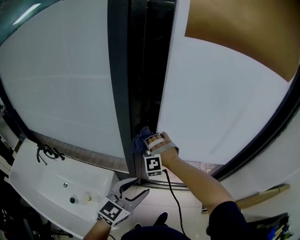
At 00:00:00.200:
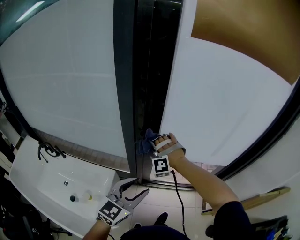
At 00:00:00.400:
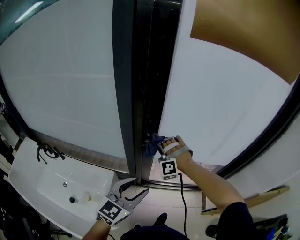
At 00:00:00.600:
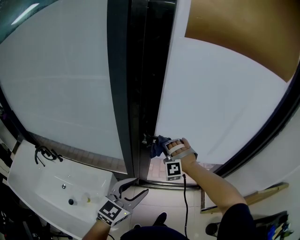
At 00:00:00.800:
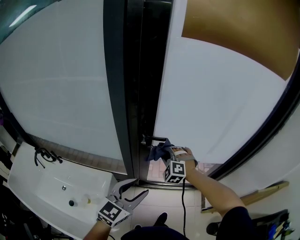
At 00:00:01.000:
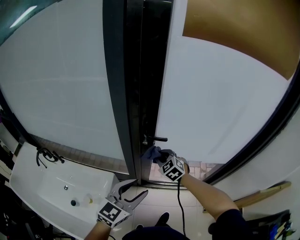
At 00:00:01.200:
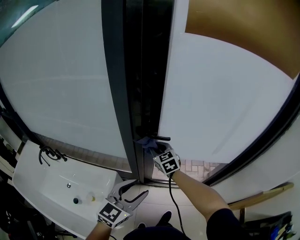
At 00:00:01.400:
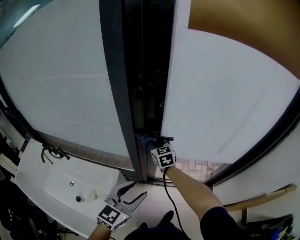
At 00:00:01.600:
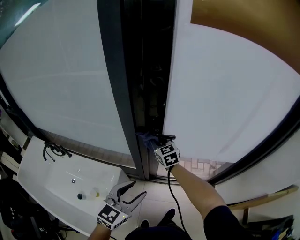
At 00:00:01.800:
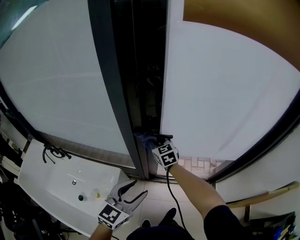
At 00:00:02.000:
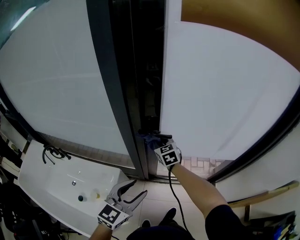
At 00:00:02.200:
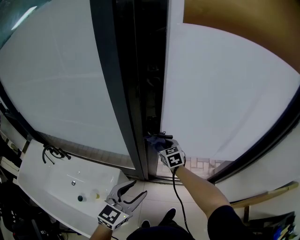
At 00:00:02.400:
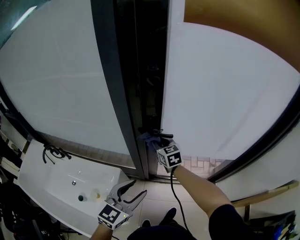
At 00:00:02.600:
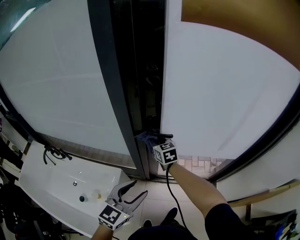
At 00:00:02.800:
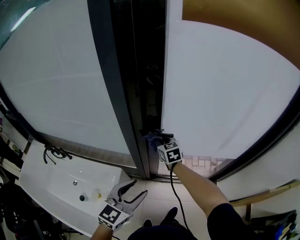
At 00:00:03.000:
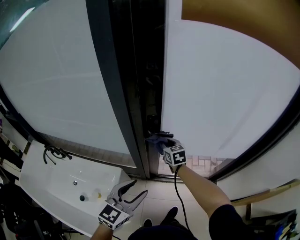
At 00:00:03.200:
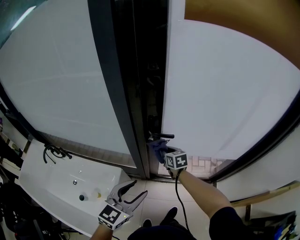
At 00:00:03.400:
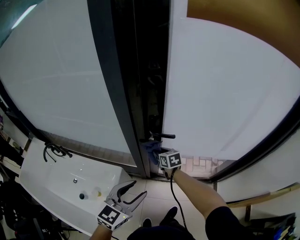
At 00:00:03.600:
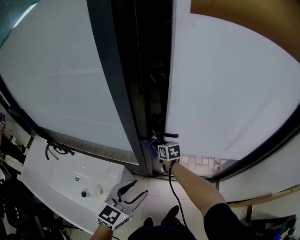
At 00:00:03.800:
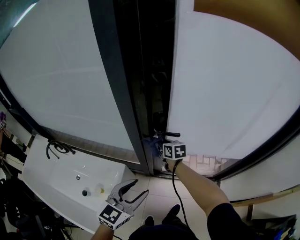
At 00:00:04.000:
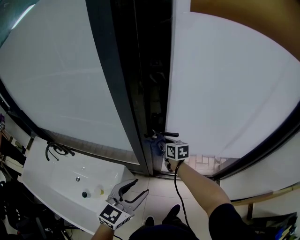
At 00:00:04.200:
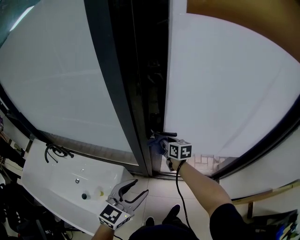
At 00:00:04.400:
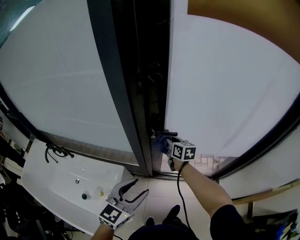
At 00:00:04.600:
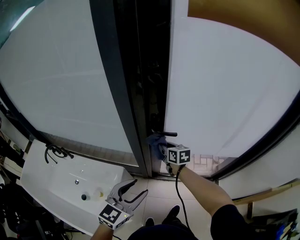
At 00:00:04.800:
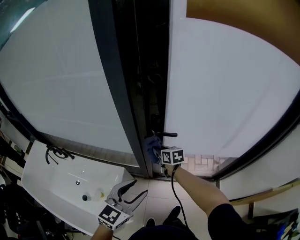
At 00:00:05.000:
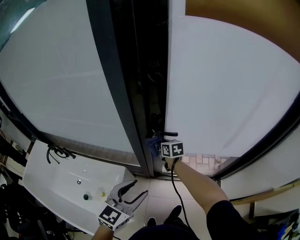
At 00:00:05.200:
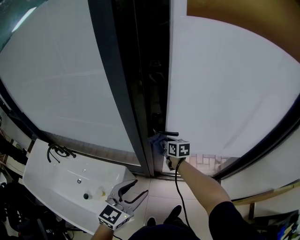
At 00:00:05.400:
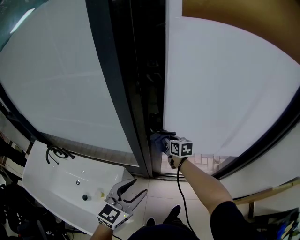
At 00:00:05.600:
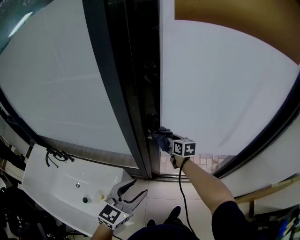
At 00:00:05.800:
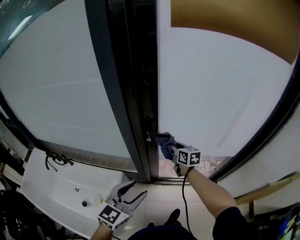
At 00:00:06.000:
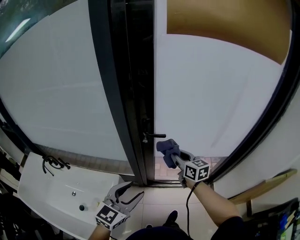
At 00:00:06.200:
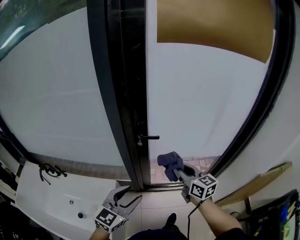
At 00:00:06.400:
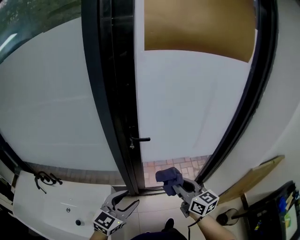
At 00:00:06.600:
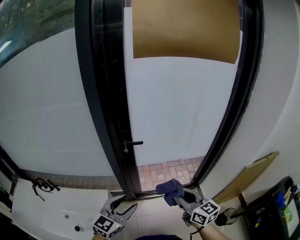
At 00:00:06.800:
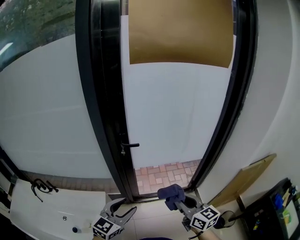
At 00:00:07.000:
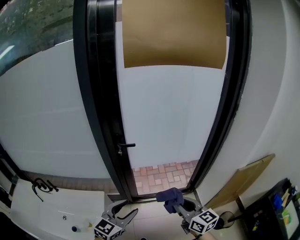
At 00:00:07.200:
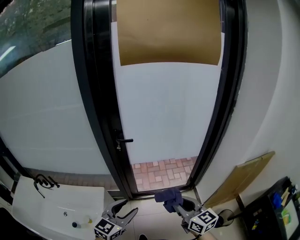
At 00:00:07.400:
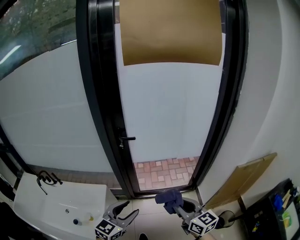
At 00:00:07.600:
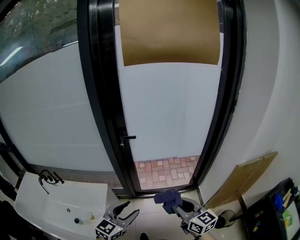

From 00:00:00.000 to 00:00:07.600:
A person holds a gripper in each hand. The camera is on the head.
From 00:00:00.000 to 00:00:01.600: The right gripper heads forward, covering about 5 cm, goes to the right and returns, about 10 cm each way, and twists about 90 degrees clockwise, seen from behind.
From 00:00:01.600 to 00:00:03.000: The right gripper moves left and right over some 5 cm, changing direction 2 times.
From 00:00:03.000 to 00:00:04.600: The right gripper reaches some 5 cm downward, then returns.
From 00:00:04.600 to 00:00:06.000: The right gripper is displaced upward, backward and to the right by roughly 15 cm.
From 00:00:06.000 to 00:00:07.600: The right gripper goes some 40 cm backward and to the right, while the left gripper travels backward and to the right by some 25 cm.

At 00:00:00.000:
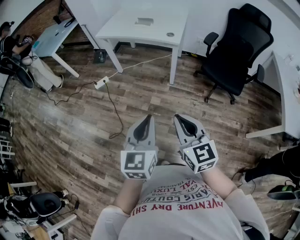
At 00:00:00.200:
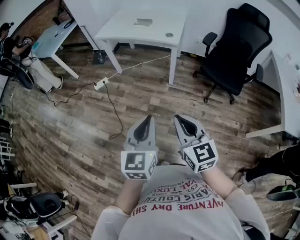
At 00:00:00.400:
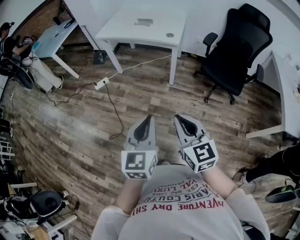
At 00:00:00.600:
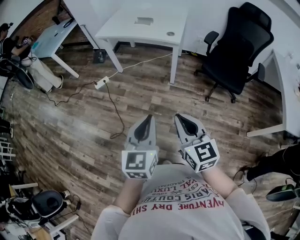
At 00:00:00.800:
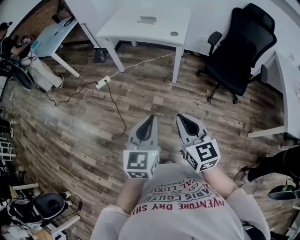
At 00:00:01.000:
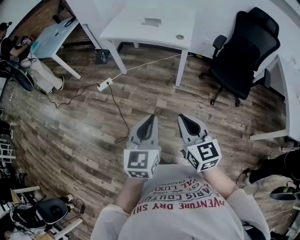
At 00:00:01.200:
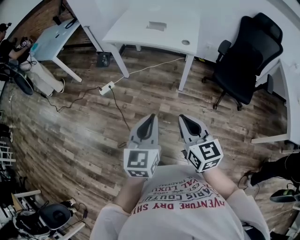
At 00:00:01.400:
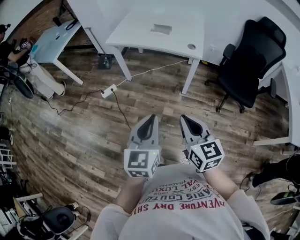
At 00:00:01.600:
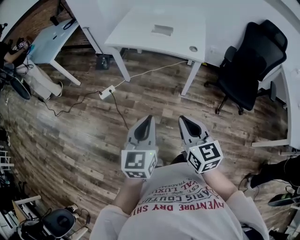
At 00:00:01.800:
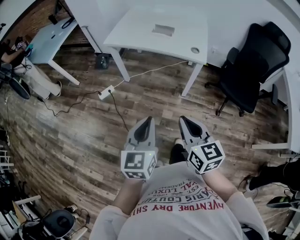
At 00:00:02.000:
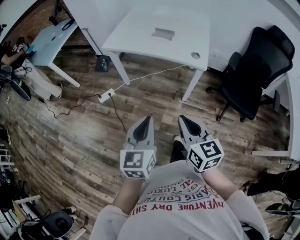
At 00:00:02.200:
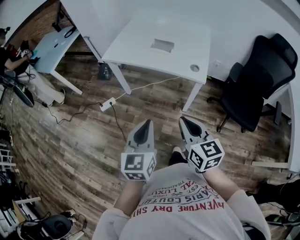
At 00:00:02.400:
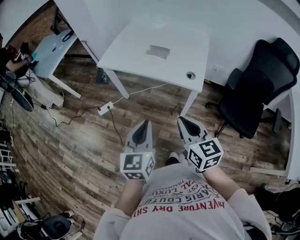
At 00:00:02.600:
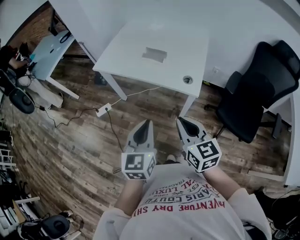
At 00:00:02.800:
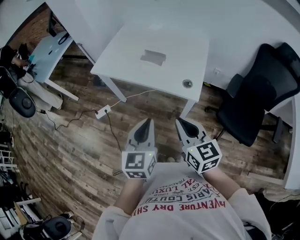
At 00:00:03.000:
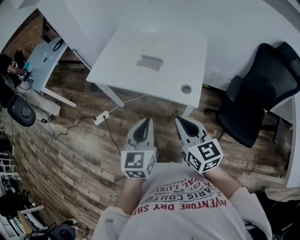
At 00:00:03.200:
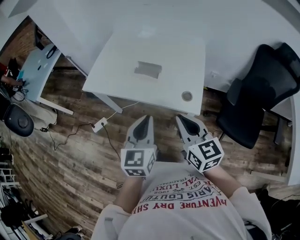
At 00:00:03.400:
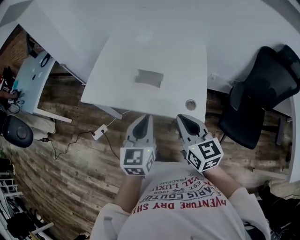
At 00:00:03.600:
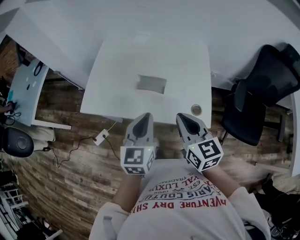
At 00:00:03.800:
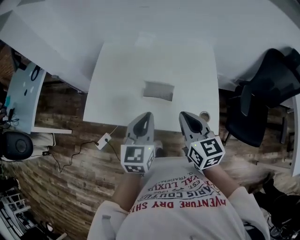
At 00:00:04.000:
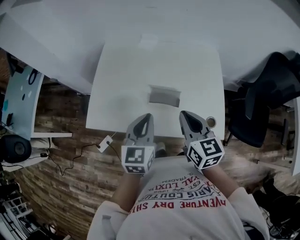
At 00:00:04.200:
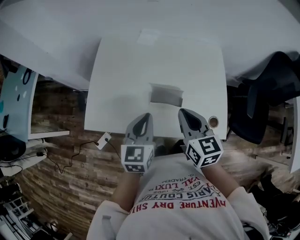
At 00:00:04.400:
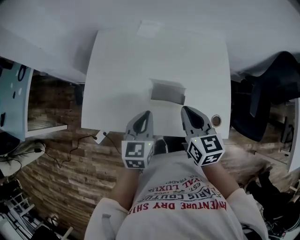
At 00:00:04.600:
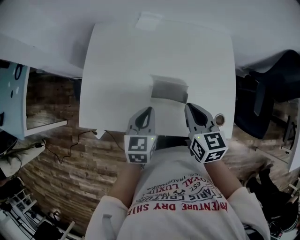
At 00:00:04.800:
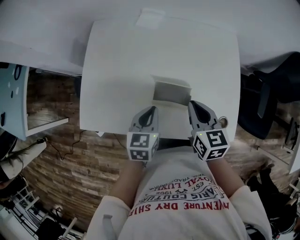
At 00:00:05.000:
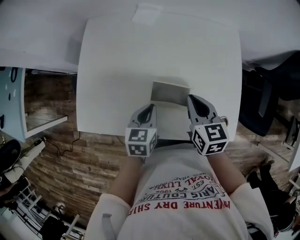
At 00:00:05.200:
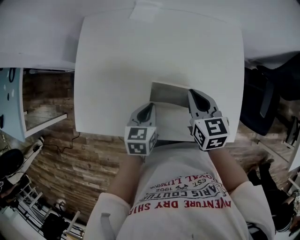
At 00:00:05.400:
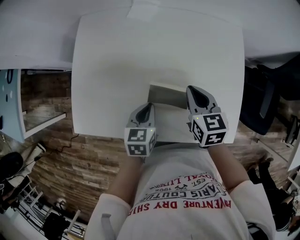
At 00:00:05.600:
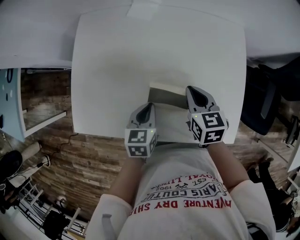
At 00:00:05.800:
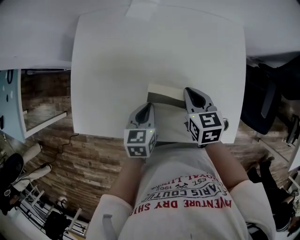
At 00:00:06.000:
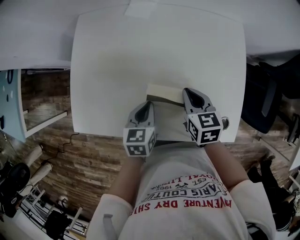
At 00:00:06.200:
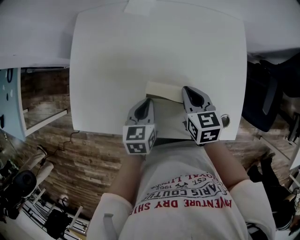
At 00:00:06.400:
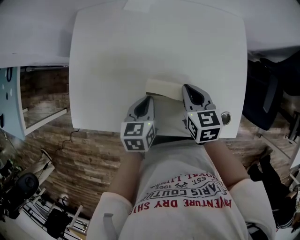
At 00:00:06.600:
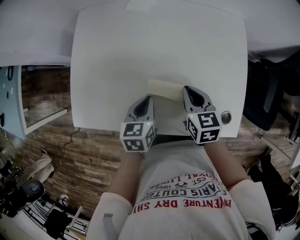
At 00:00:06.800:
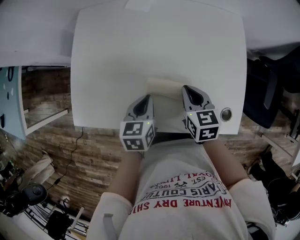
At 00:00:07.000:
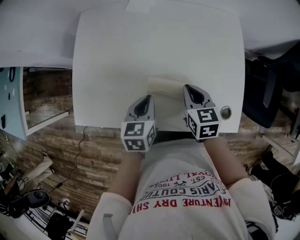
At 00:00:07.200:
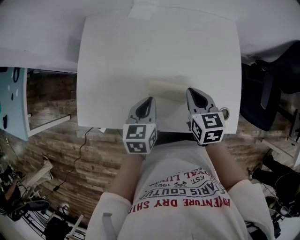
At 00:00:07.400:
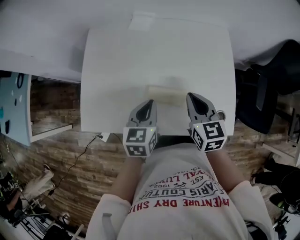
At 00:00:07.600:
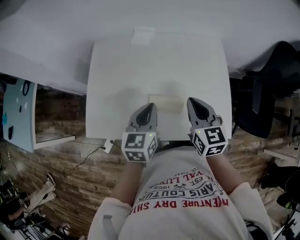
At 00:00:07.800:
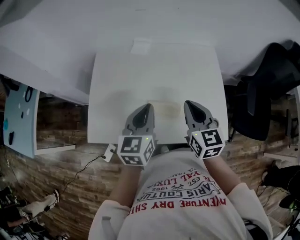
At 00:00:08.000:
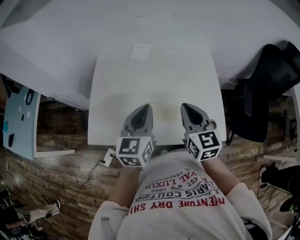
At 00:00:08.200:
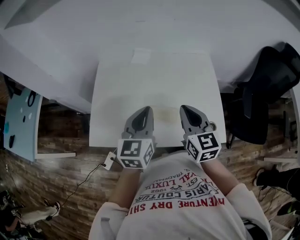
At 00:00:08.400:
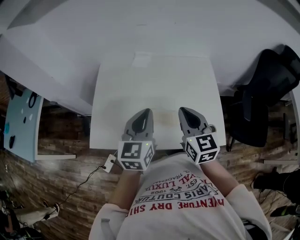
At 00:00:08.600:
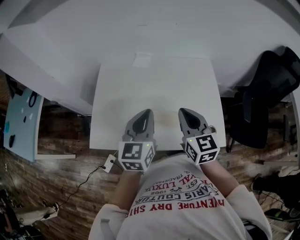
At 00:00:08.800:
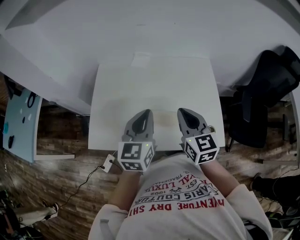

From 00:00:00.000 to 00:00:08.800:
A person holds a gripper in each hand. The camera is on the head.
From 00:00:00.000 to 00:00:01.400: Both grippers move forward and to the left, some 15 cm.
From 00:00:01.400 to 00:00:03.000: Both grippers move forward, roughly 30 cm.
From 00:00:03.000 to 00:00:04.400: The two grippers go some 25 cm forward. The left gripper changes its angle by roughly 20 degrees; the right gripper changes its angle by roughly 20 degrees.
From 00:00:04.400 to 00:00:05.800: The right gripper heads downward and forward, covering approximately 15 cm, while the left gripper moves downward, some 10 cm.
From 00:00:05.800 to 00:00:07.400: The two grippers go roughly 5 cm upward.
From 00:00:07.400 to 00:00:08.800: Both grippers move upward, about 10 cm. The left gripper rotates some 20 degrees.

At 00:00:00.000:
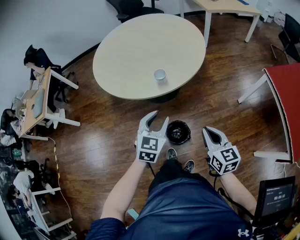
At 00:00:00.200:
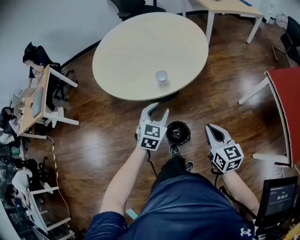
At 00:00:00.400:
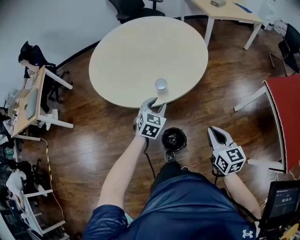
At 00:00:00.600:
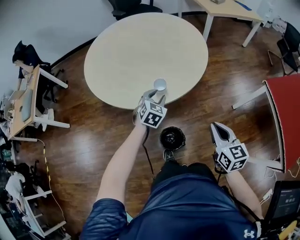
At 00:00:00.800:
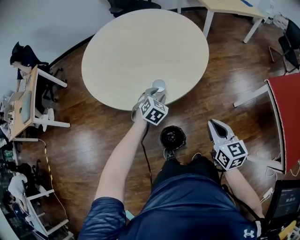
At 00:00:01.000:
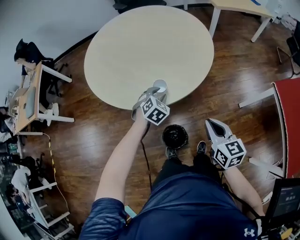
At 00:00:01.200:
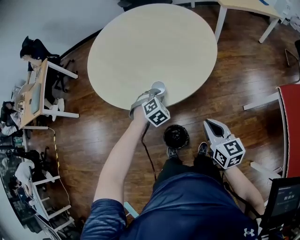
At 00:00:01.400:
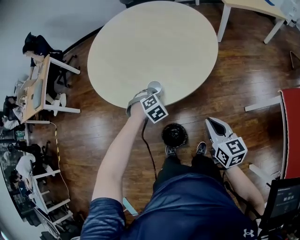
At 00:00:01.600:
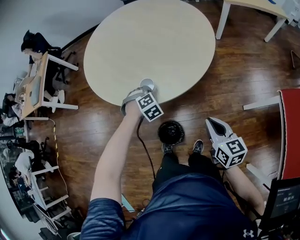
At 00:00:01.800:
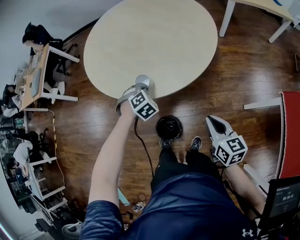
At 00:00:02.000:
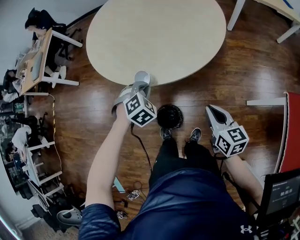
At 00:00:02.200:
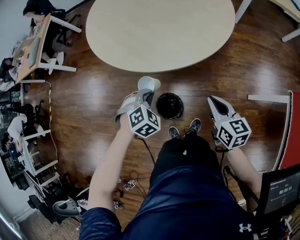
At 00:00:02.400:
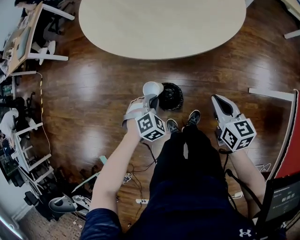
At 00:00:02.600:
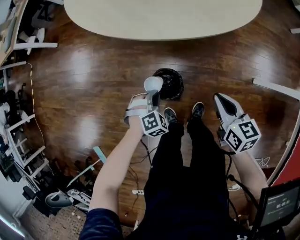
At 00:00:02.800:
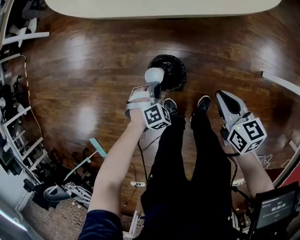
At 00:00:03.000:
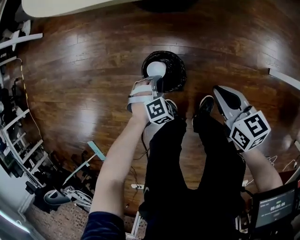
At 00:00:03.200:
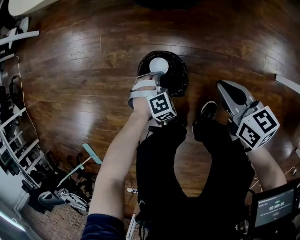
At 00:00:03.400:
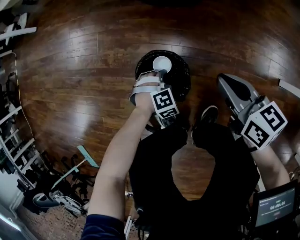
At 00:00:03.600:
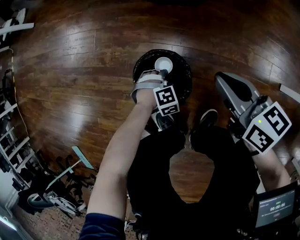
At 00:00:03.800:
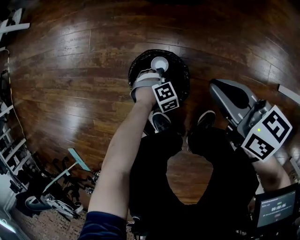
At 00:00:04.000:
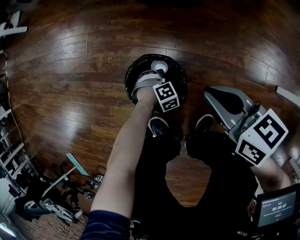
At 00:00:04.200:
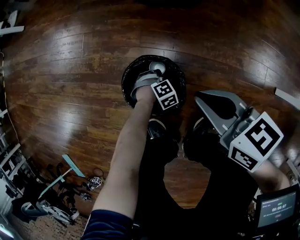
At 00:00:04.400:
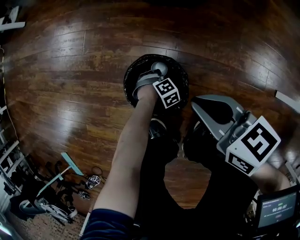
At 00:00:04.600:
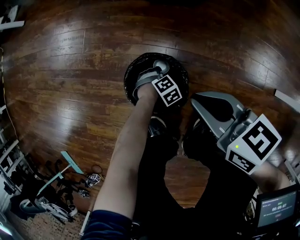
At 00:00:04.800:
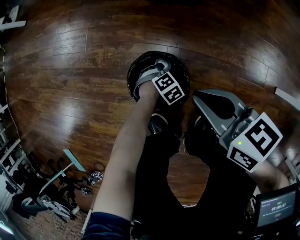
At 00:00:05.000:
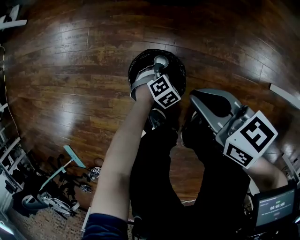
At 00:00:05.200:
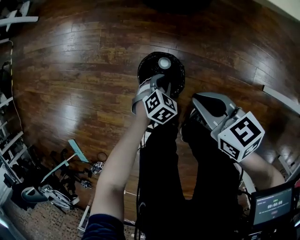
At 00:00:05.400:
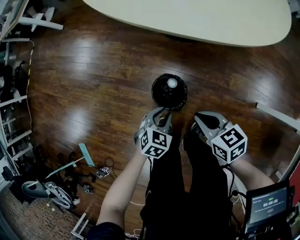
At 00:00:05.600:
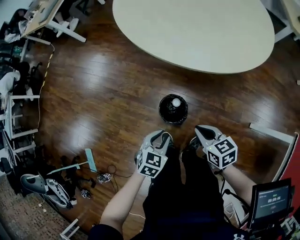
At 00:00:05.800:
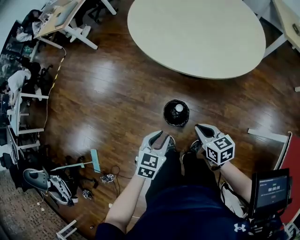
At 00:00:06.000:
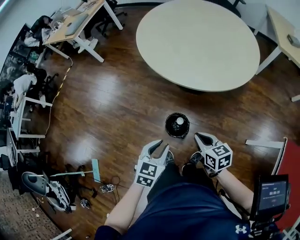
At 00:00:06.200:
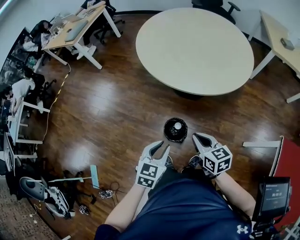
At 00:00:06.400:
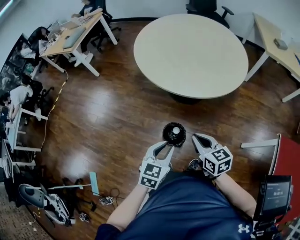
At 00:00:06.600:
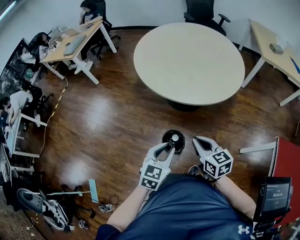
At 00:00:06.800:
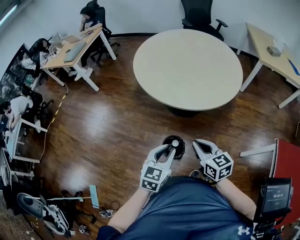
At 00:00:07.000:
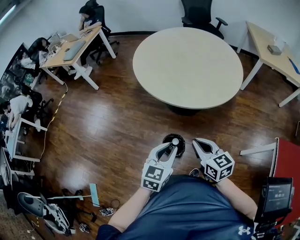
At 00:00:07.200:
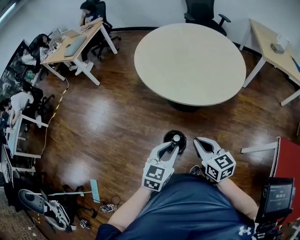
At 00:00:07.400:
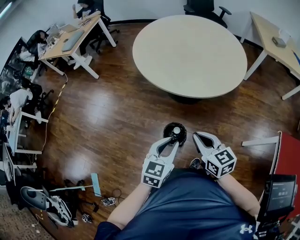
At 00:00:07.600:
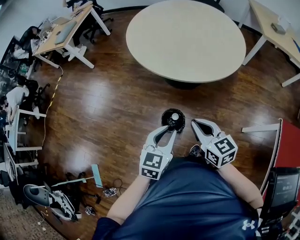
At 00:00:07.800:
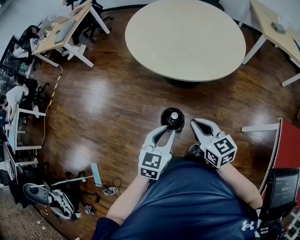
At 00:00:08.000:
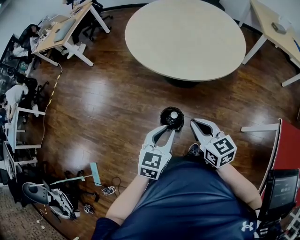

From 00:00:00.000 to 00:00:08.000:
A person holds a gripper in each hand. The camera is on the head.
From 00:00:00.000 to 00:00:01.600: The left gripper shifts by roughly 25 cm, angles its fingers downward, by some 40 degrees, and closes up; the right gripper changes place by some 20 cm.
From 00:00:01.600 to 00:00:03.200: The right gripper moves downward, approximately 35 cm, and turns by some 30 degrees; the left gripper travels downward and backward by about 50 cm.
From 00:00:03.200 to 00:00:04.800: The right gripper moves some 10 cm. The left gripper heads downward, covering some 15 cm, swivels roughly 20 degrees, and opens up.
From 00:00:04.800 to 00:00:06.400: The right gripper heads upward, covering some 40 cm. The left gripper goes roughly 70 cm upward, and points its fingers some 50 degrees further upward.
From 00:00:06.400 to 00:00:08.000: There are only small adjustments of the grippers.
